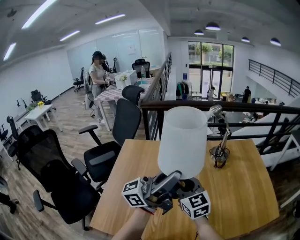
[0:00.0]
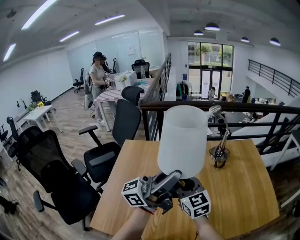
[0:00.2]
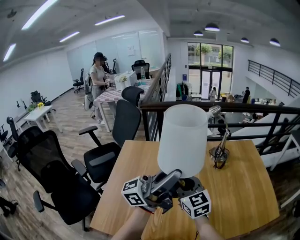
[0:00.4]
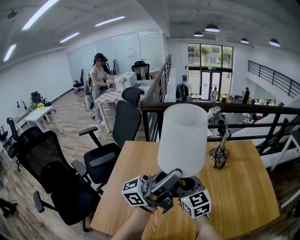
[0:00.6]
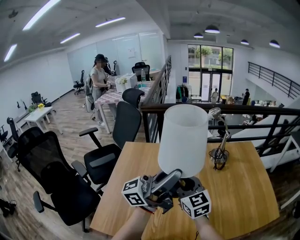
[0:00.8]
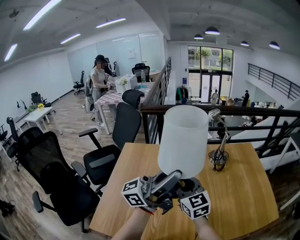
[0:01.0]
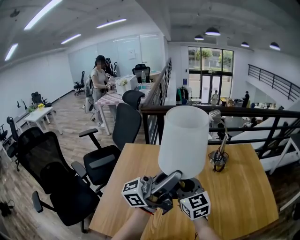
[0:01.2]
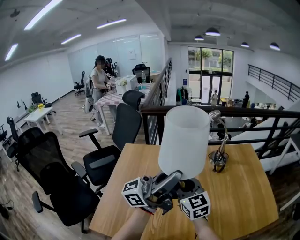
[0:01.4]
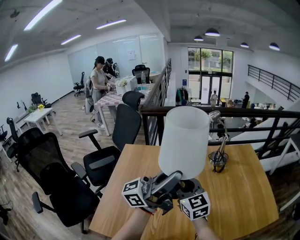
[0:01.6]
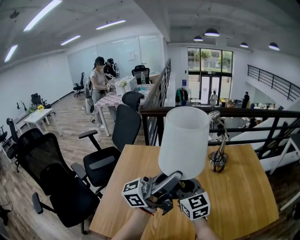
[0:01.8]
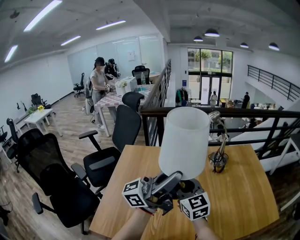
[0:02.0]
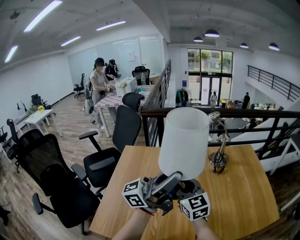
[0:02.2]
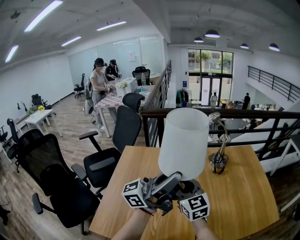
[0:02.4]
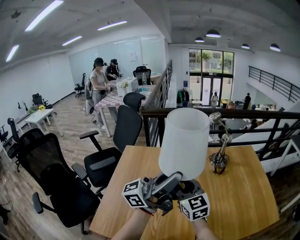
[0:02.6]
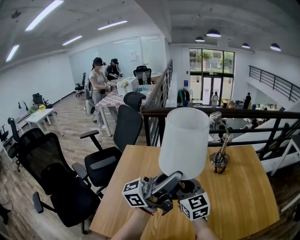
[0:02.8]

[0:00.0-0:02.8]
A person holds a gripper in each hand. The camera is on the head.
0:00.0 to 0:01.4: There are only small adjustments of the grippers.
0:01.4 to 0:02.8: Both grippers stay about where they are.

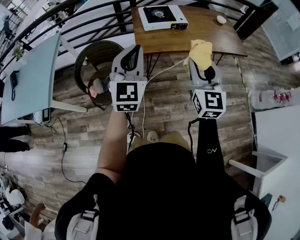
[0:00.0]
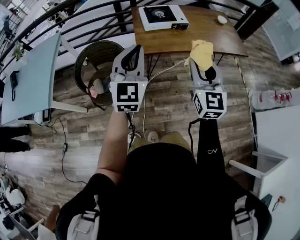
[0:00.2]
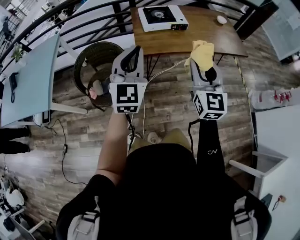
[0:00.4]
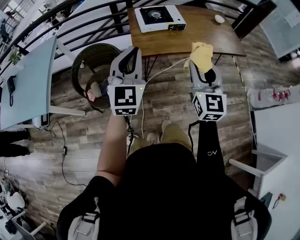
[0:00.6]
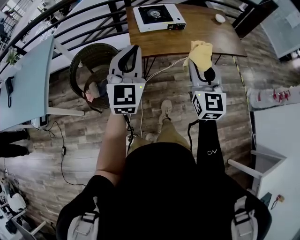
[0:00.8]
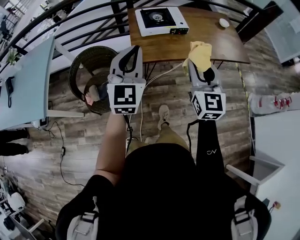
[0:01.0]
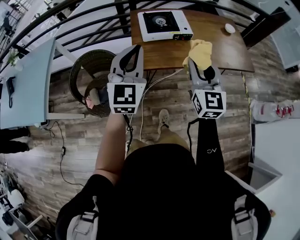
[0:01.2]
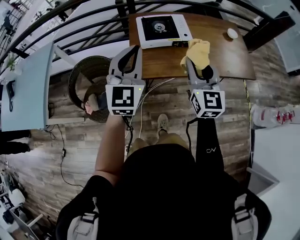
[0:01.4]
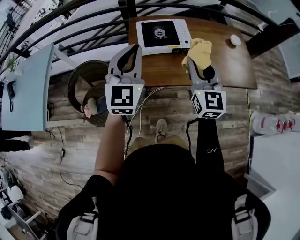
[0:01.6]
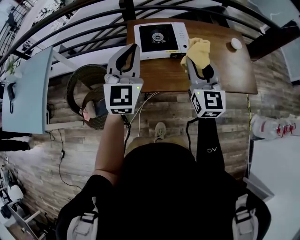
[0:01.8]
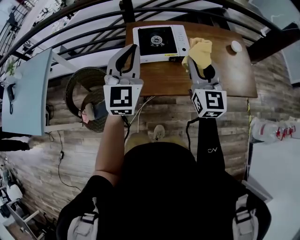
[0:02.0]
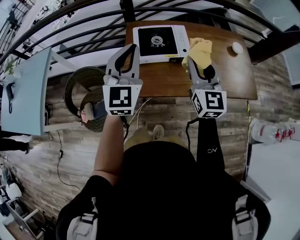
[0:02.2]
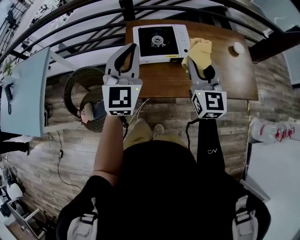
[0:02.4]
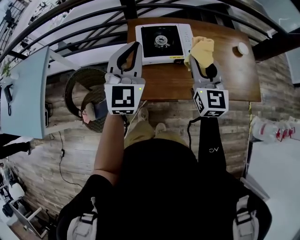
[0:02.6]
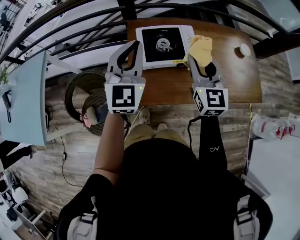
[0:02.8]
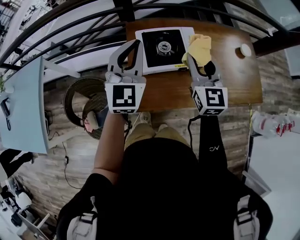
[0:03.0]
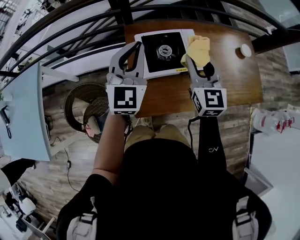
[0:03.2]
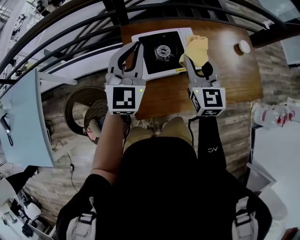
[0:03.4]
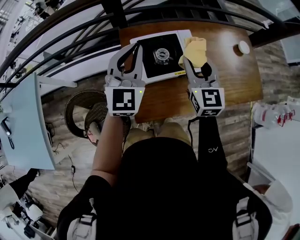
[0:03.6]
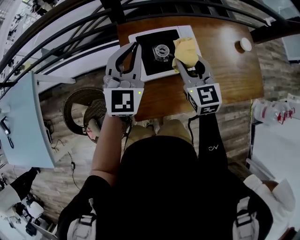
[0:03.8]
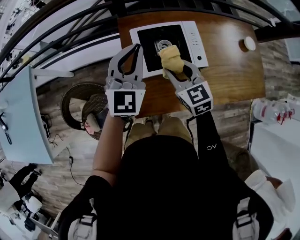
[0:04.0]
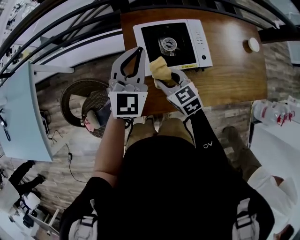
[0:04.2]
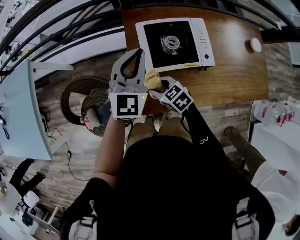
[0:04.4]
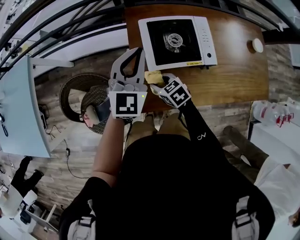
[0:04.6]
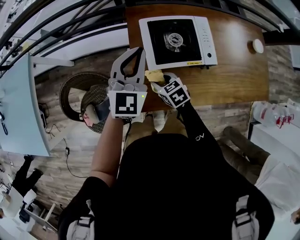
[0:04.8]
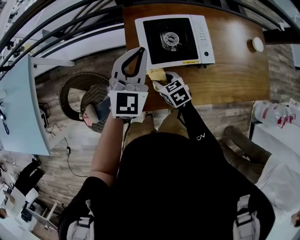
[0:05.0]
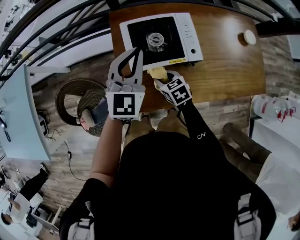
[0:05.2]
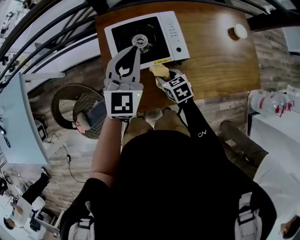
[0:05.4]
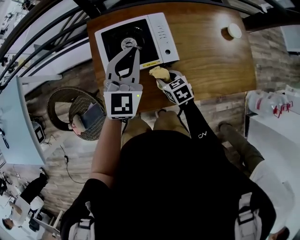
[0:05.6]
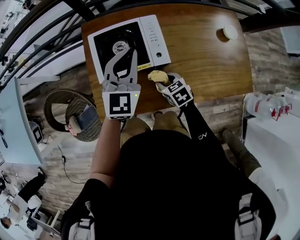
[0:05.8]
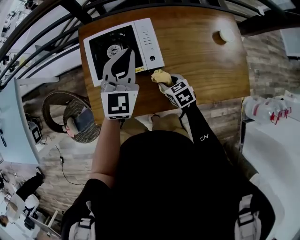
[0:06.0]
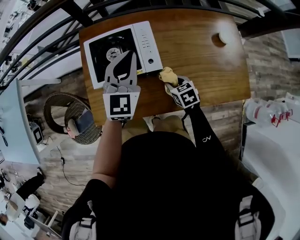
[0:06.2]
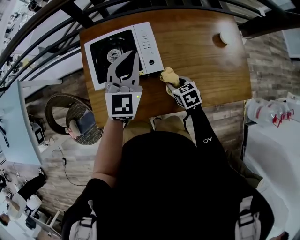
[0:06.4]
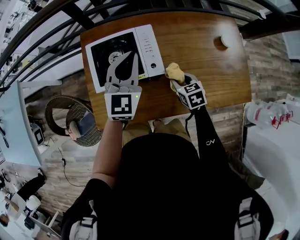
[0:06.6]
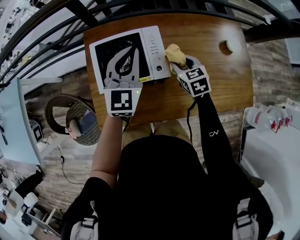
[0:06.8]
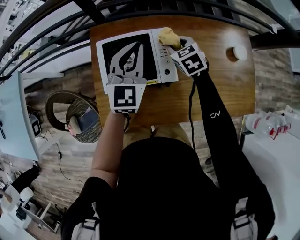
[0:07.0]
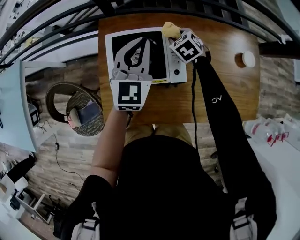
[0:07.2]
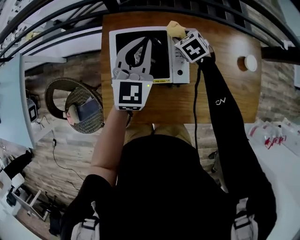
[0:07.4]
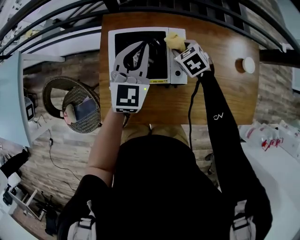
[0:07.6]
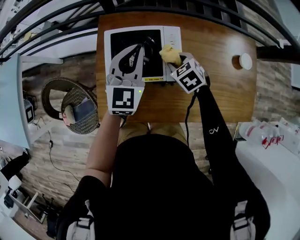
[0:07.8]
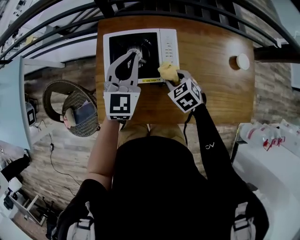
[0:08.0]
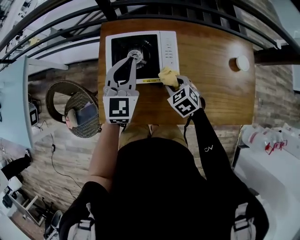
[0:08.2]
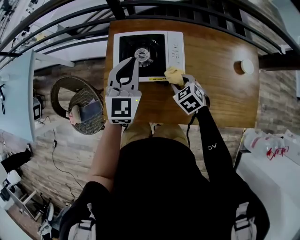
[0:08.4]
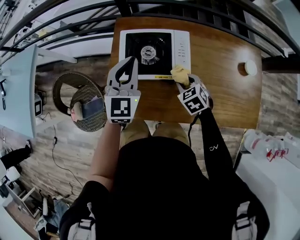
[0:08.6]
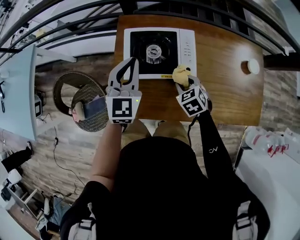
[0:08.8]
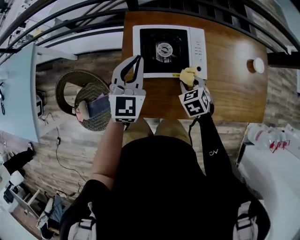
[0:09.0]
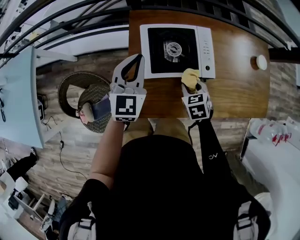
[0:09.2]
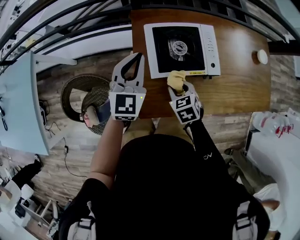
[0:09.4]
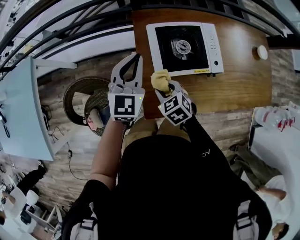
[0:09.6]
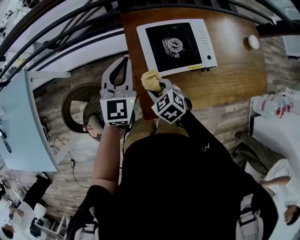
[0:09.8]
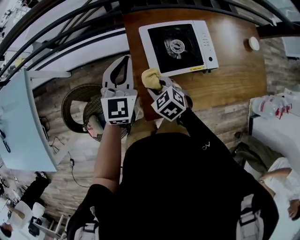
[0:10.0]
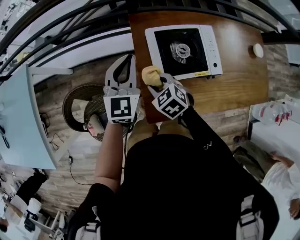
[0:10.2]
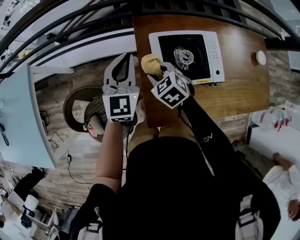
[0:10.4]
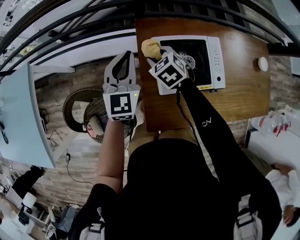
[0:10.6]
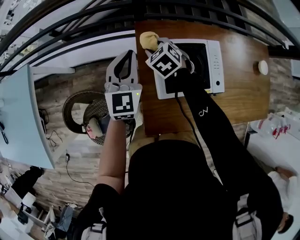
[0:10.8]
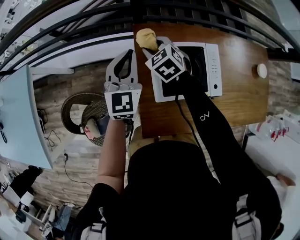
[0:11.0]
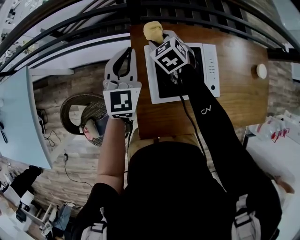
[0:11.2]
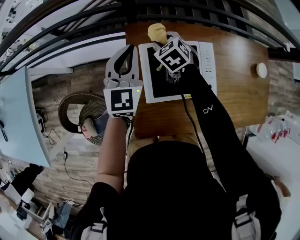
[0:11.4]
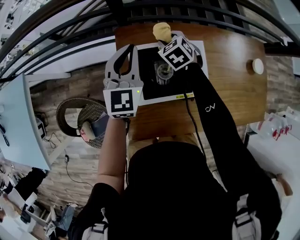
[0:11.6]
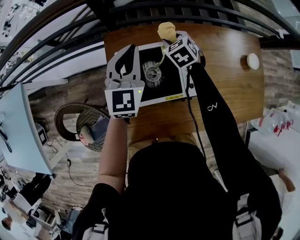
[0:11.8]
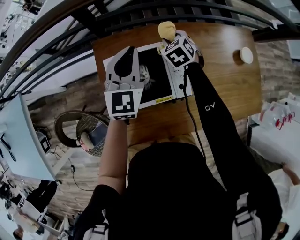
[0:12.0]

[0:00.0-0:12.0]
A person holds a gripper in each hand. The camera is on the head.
0:00.0 to 0:01.6: The grippers both shift forward by approximately 30 cm.
0:01.6 to 0:03.0: The two grippers go roughly 20 cm forward.
0:03.0 to 0:04.4: The right gripper goes some 25 cm downward, and tips its fingers downward by approximately 40 degrees. The left gripper is displaced downward by approximately 10 cm.
0:04.4 to 0:06.0: The grippers both shift to the right by about 25 cm.
0:06.0 to 0:07.6: The left gripper is displaced forward and to the left by about 10 cm. The right gripper shifts roughly 20 cm forward, and changes its angle by some 30 degrees.
0:07.6 to 0:09.0: The left gripper shifts about 15 cm to the left and backward. The right gripper heads backward and to the left, covering approximately 15 cm.
0:09.0 to 0:10.4: The left gripper is displaced to the left and forward by about 15 cm; the right gripper moves to the left and forward, about 25 cm.
0:10.4 to 0:12.0: The right gripper moves to the right and forward, about 35 cm, and rotates roughly 20 degrees. The left gripper shifts about 25 cm to the right.

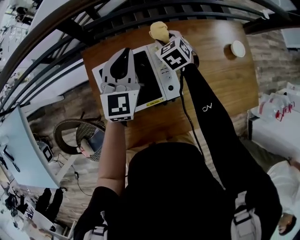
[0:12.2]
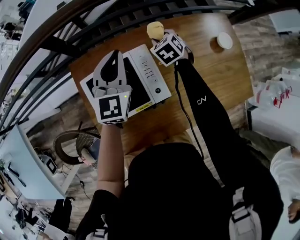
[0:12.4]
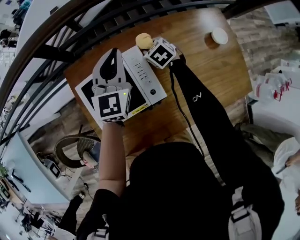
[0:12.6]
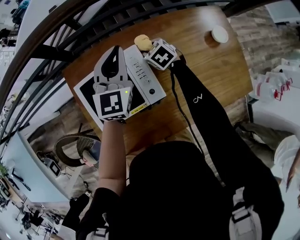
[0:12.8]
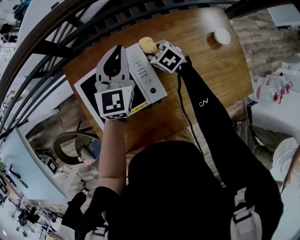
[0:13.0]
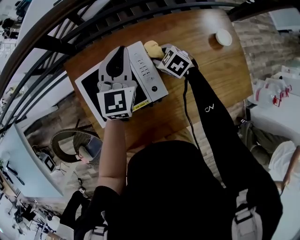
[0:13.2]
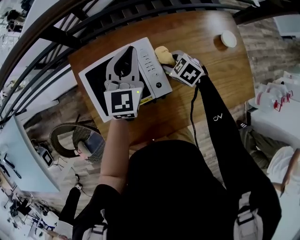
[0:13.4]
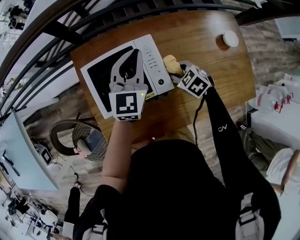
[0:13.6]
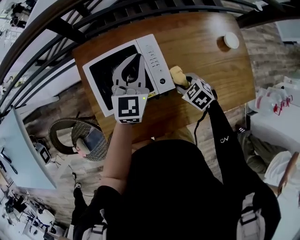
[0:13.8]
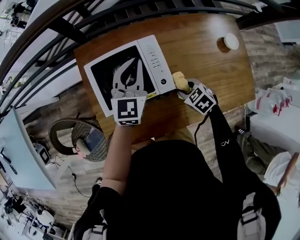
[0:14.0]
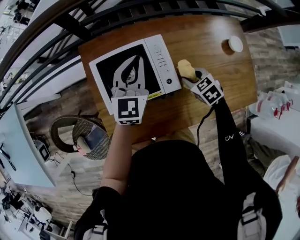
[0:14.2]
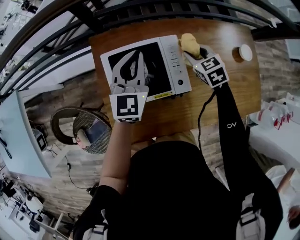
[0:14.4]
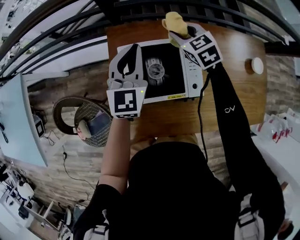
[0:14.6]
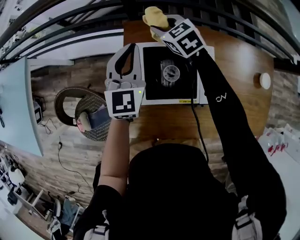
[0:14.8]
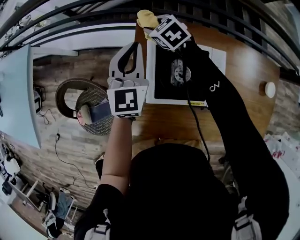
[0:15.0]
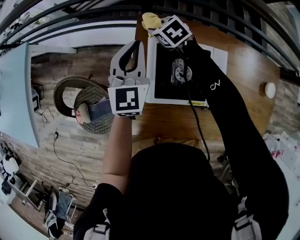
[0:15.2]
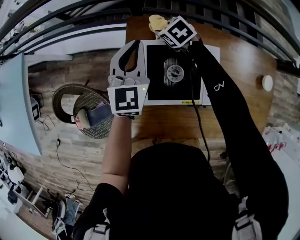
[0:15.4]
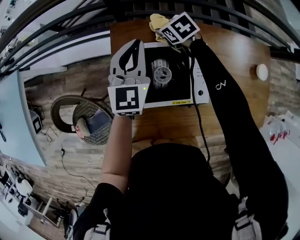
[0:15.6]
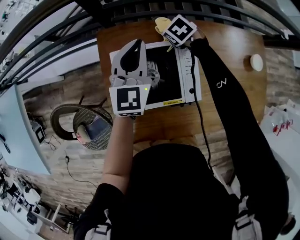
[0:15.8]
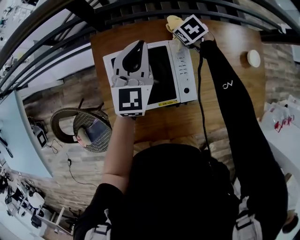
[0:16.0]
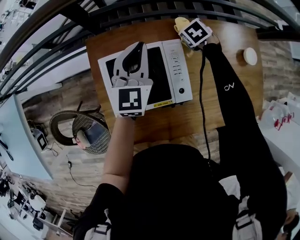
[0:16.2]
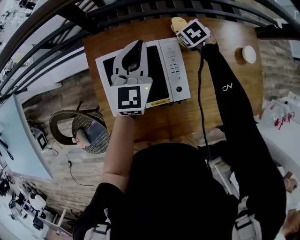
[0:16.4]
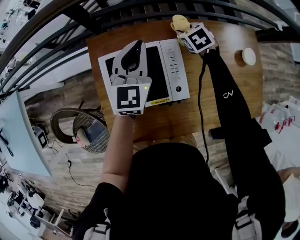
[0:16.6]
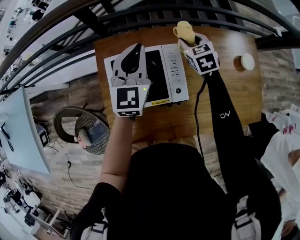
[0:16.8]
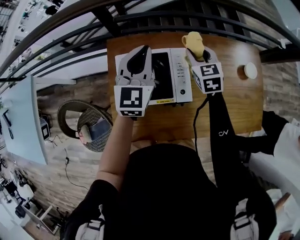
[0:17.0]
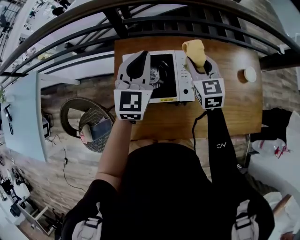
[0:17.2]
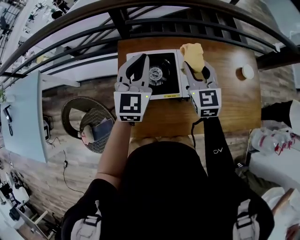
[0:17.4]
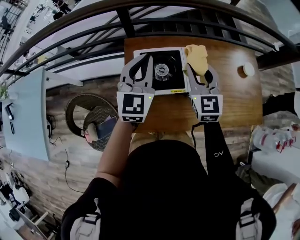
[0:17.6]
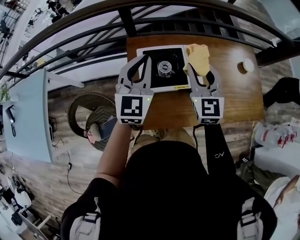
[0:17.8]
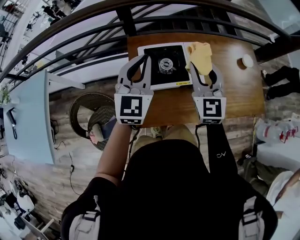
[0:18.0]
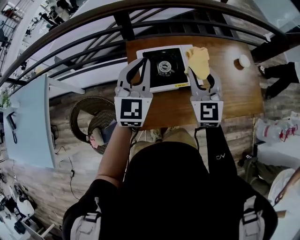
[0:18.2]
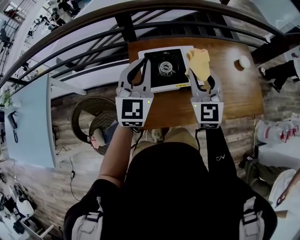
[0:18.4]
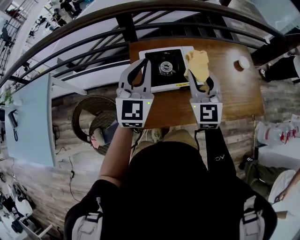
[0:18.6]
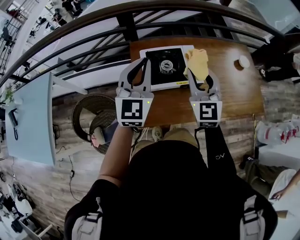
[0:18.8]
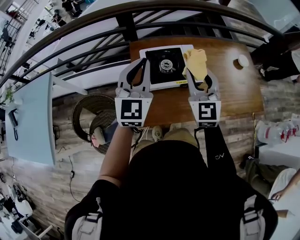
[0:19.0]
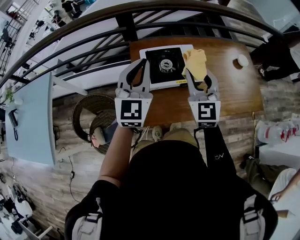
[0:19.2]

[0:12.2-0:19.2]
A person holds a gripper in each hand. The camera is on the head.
0:12.2 to 0:13.6: The right gripper is displaced backward by roughly 20 cm, and swivels some 30 degrees, while the left gripper heads to the right, covering about 5 cm.
0:13.6 to 0:15.0: The right gripper moves roughly 40 cm, and changes its angle by some 20 degrees. Meanwhile the left gripper shifts by about 25 cm, and changes its angle by about 30 degrees.
0:15.0 to 0:16.4: The right gripper shifts by roughly 40 cm, and rotates some 40 degrees. Meanwhile the left gripper changes place by approximately 20 cm.
0:16.4 to 0:17.8: The left gripper travels backward, upward and to the left by roughly 25 cm. The right gripper goes approximately 40 cm upward, backward and to the left, and tips its fingers upward by approximately 60 degrees.
0:17.8 to 0:19.2: The grippers both shift backward by roughly 10 cm.

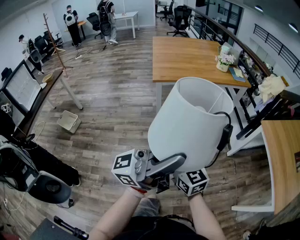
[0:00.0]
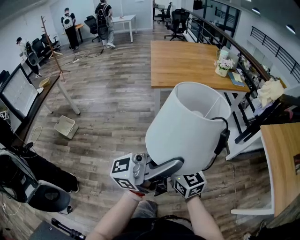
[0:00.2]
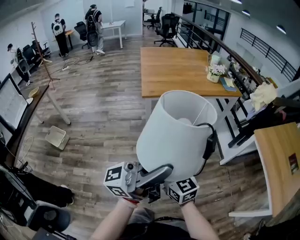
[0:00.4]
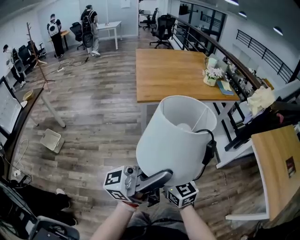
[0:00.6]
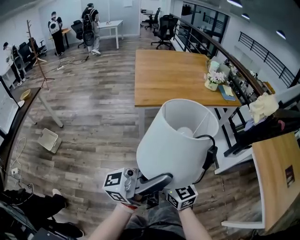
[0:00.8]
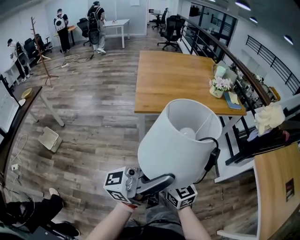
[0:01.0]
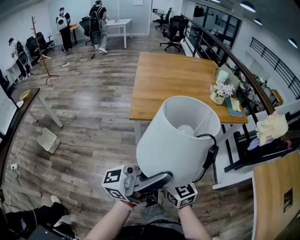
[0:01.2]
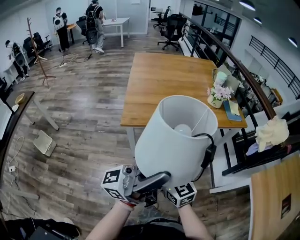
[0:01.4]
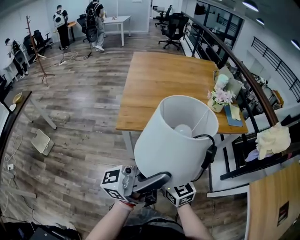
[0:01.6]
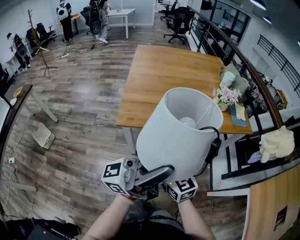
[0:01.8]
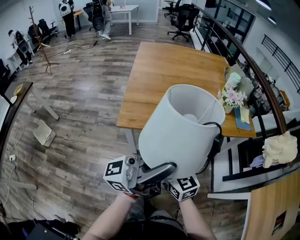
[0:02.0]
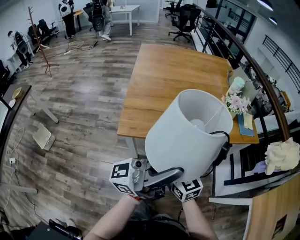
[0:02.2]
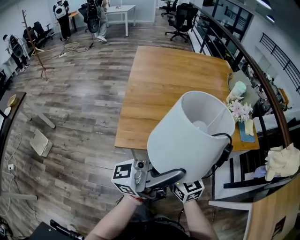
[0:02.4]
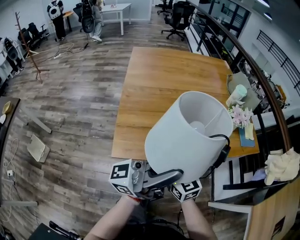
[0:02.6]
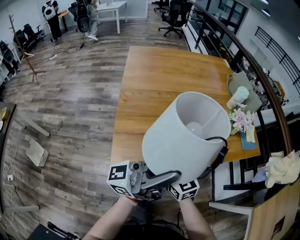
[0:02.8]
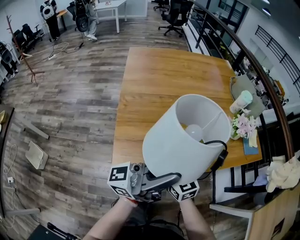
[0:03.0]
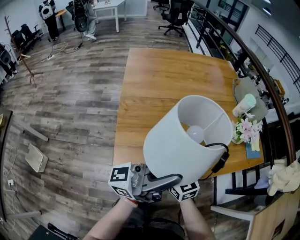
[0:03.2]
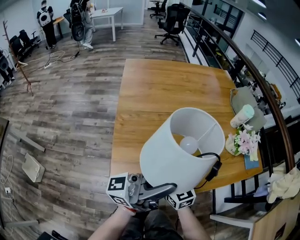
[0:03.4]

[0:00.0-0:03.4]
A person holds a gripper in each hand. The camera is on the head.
0:00.0 to 0:01.6: The grippers both shift forward by roughly 40 cm.
0:01.6 to 0:03.4: The two grippers go roughly 35 cm forward and to the left.
